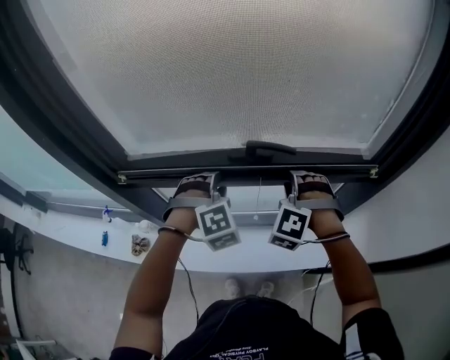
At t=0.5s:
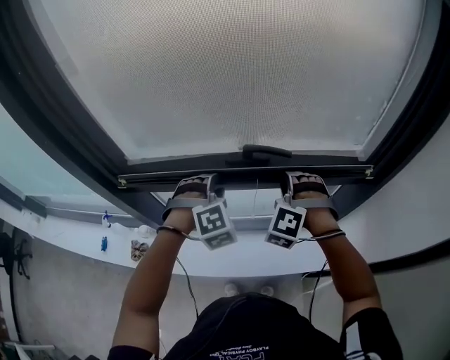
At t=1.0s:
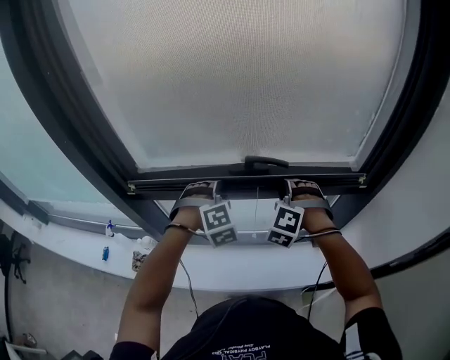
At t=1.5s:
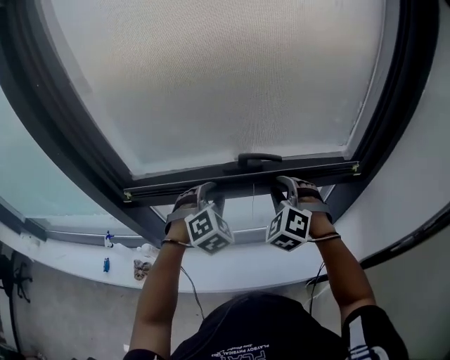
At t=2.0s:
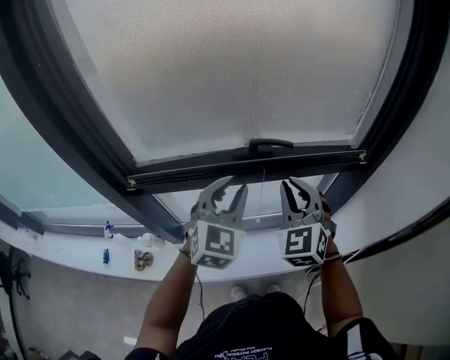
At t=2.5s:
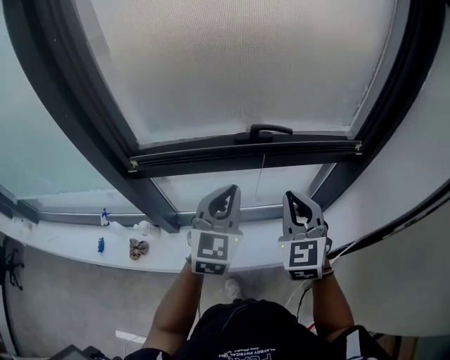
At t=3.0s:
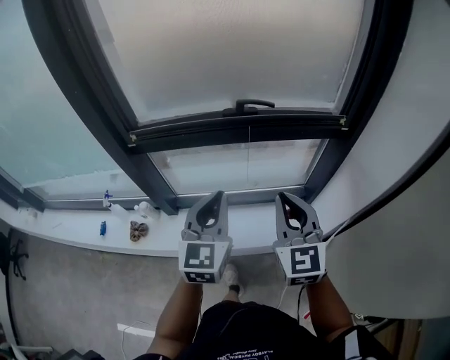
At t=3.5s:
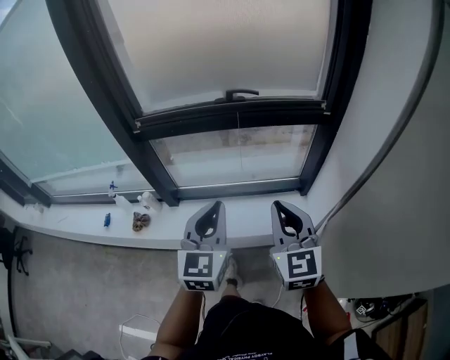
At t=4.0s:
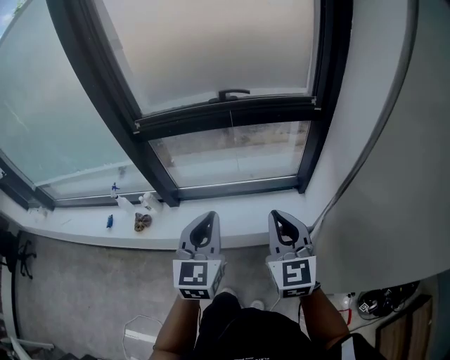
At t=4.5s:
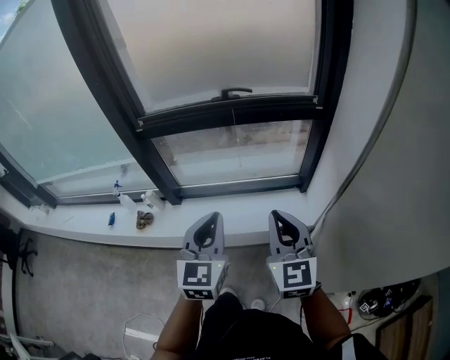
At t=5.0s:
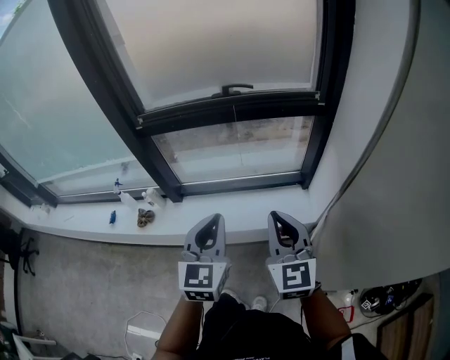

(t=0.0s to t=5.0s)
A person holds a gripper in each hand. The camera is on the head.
t=0.0s - t=2.5s: Both grippers move backward and upward, about 15 cm. The left gripper tilts its fingers approximately 40 degrees upward, and closes, while the right gripper rolls clockwise, seen from behind, by roughly 60 degrees, and closes.
t=2.5s - t=5.0s: Both grippers move backward, approximately 30 cm.

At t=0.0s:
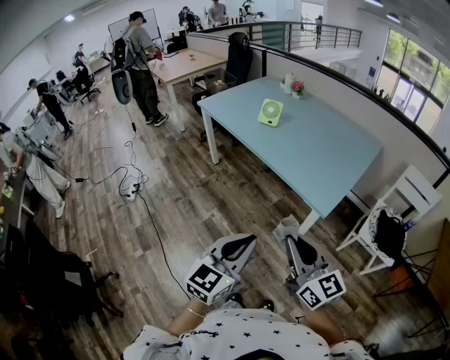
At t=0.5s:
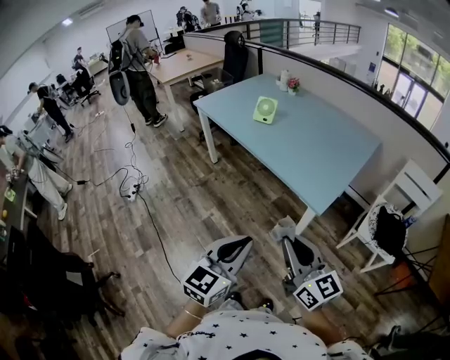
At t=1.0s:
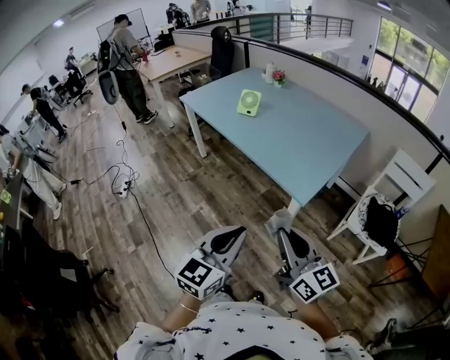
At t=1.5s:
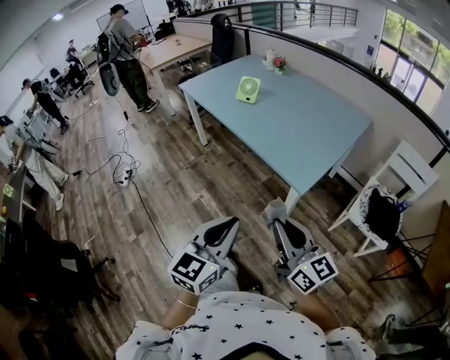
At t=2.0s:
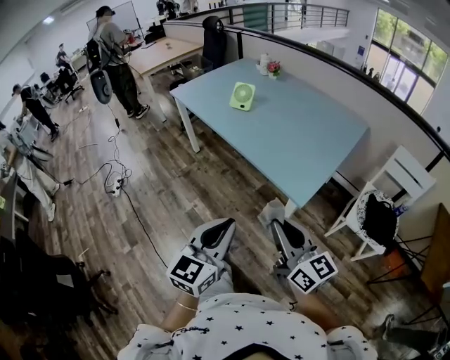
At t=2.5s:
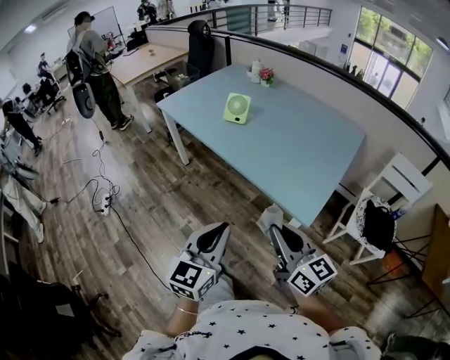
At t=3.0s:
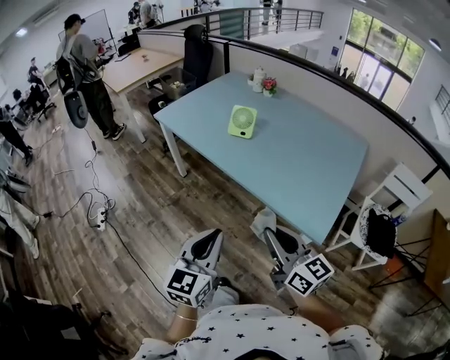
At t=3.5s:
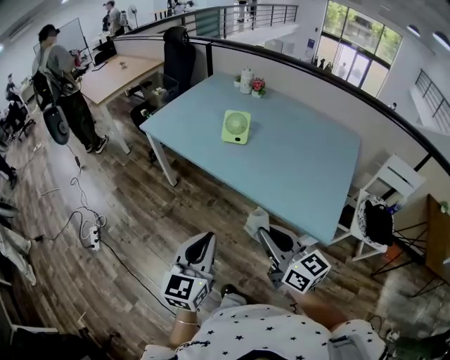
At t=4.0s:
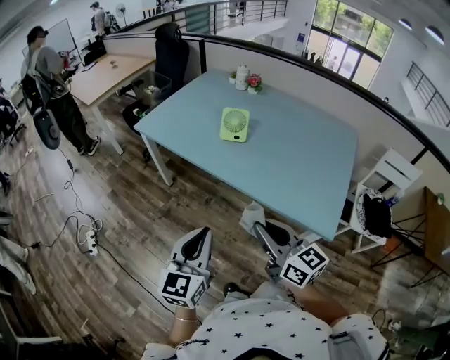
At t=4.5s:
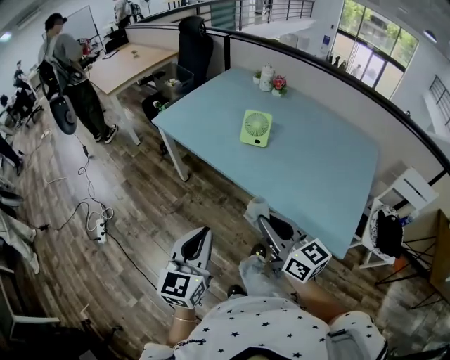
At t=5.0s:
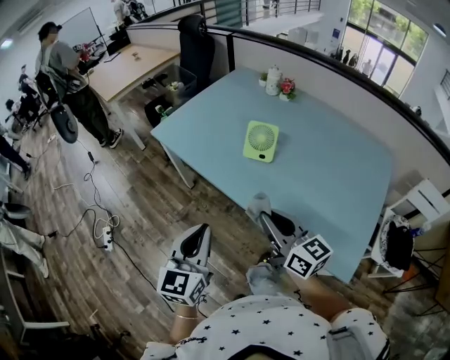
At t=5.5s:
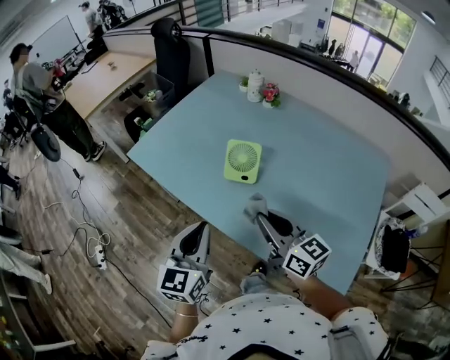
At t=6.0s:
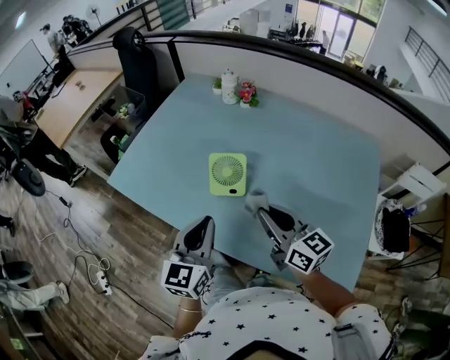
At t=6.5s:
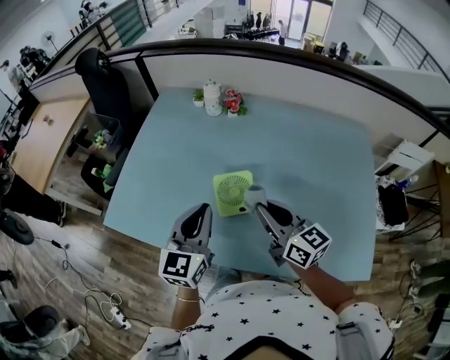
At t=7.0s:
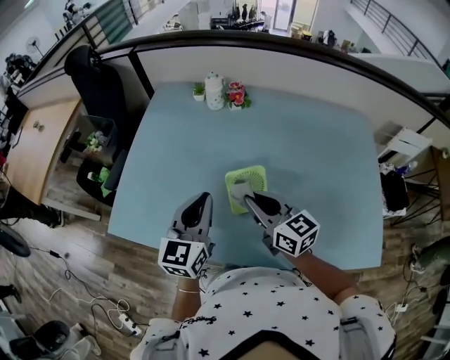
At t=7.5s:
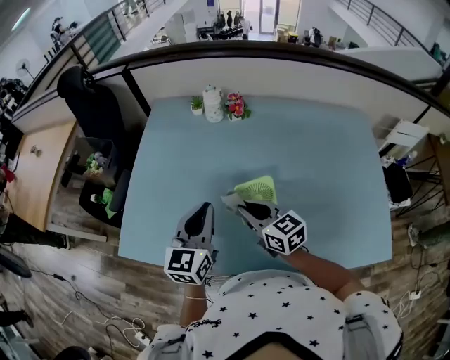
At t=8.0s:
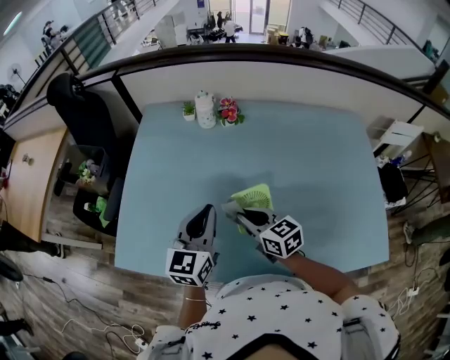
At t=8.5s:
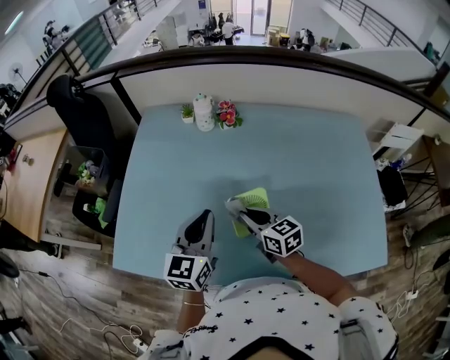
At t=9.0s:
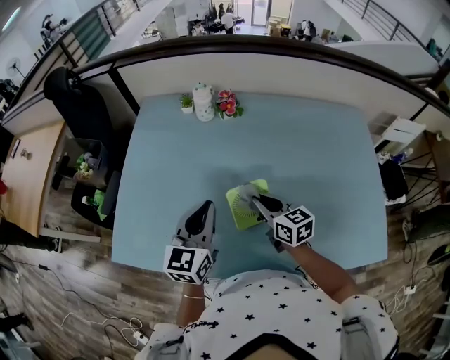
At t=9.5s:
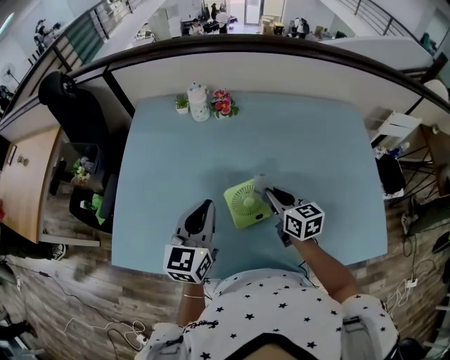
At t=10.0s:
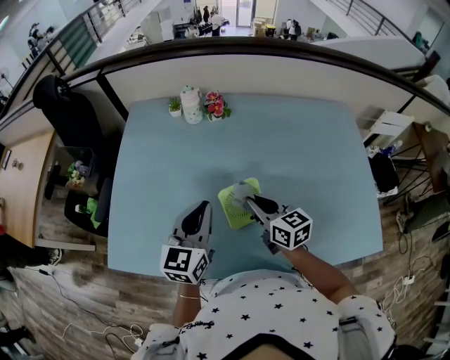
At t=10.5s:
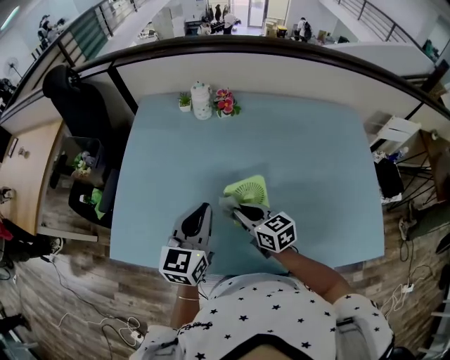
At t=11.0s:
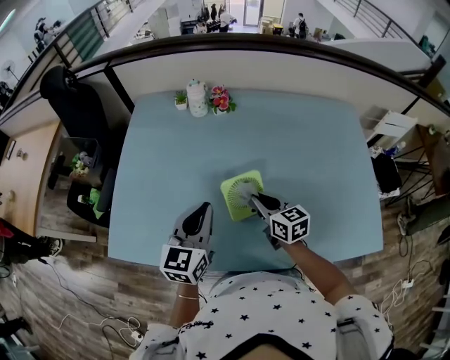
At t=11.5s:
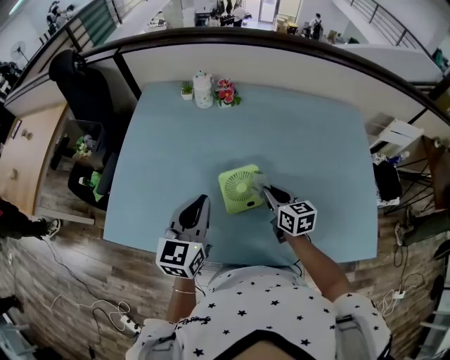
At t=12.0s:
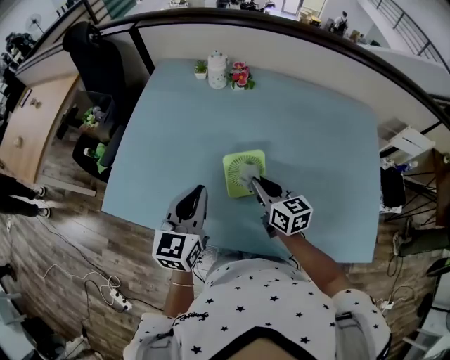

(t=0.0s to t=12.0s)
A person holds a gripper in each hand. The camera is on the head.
t=0.0s - t=2.0s: The left gripper moves forward and to the right, some 10 cm, while the right gripper heads to the right and forward, covering roughly 10 cm.
t=2.0s - t=4.0s: Both grippers travel together forward and to the left, about 35 cm.
t=4.0s - t=6.0s: Both grippers move forward, some 35 cm.
t=6.0s - t=8.0s: The left gripper travels forward and to the left by about 25 cm, and swivels roughly 20 degrees; the right gripper moves forward, to the left and downward, some 25 cm, and turns by approximately 20 degrees.
t=8.0s - t=10.0s: The right gripper shifts approximately 5 cm to the right.
t=10.0s - t=12.0s: The right gripper goes left and right, some 15 cm each way, reversing 2 times. Meanwhile the left gripper moves backward, approximately 5 cm.

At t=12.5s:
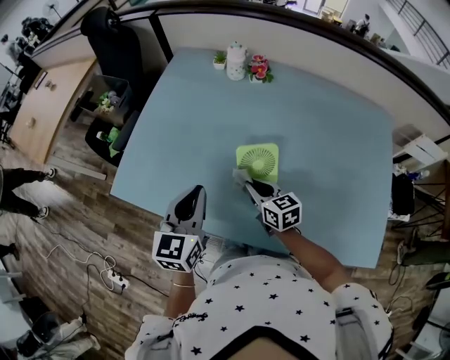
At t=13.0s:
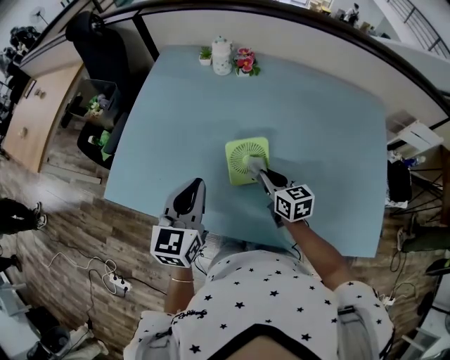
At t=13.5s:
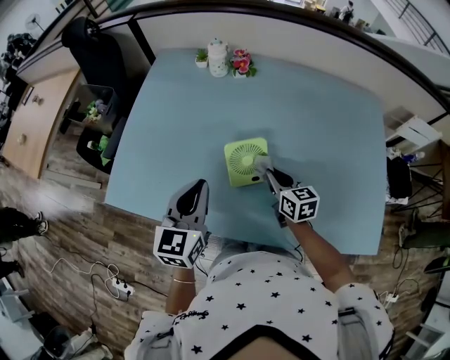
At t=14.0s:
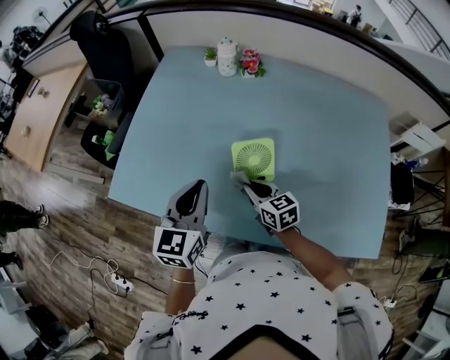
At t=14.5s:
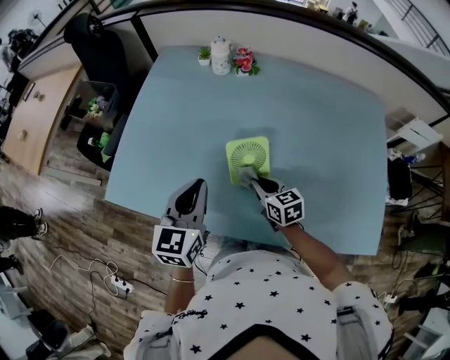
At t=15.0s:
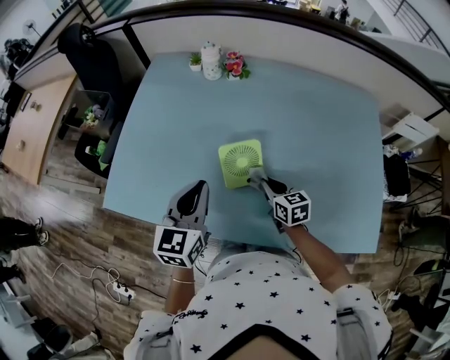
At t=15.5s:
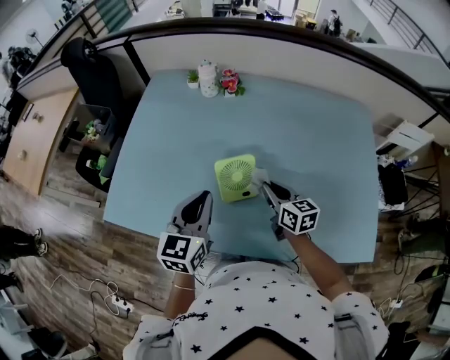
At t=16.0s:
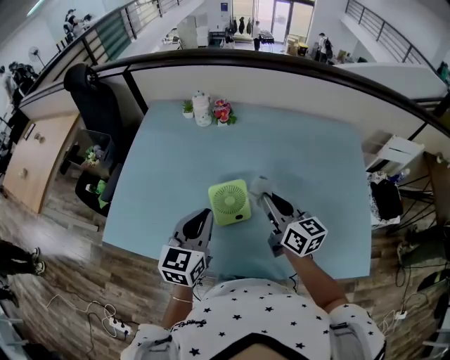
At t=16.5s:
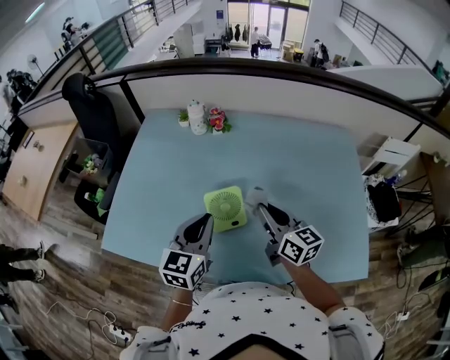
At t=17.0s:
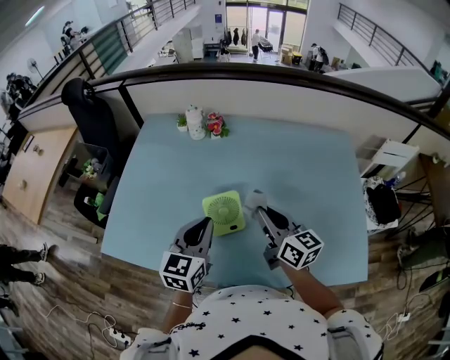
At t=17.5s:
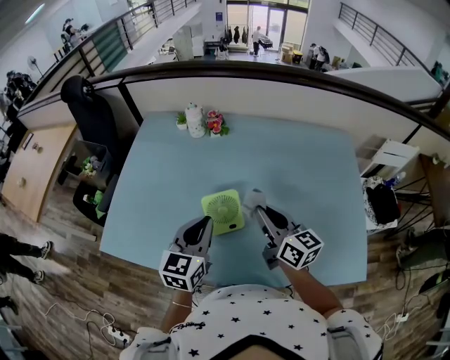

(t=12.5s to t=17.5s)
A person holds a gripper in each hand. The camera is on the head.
t=12.5s - t=15.0s: The right gripper swings left and right, about 10 cm each way, with 2 reversals, while the left gripper changes place by approximately 5 cm.
t=15.0s - t=17.5s: The left gripper goes approximately 5 cm to the right; the right gripper heads upward, covering approximately 20 cm, and tilts its fingers roughly 30 degrees upward.

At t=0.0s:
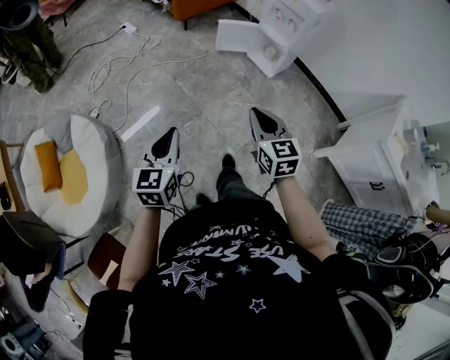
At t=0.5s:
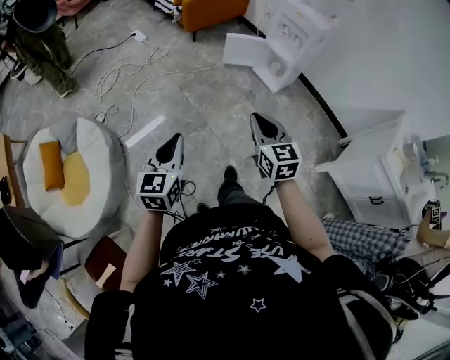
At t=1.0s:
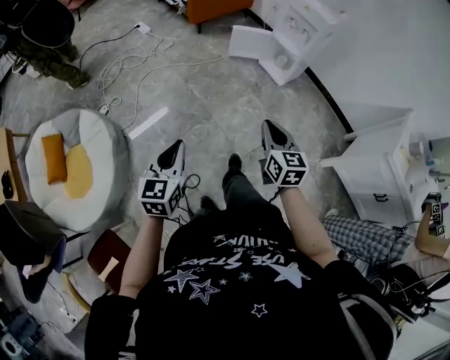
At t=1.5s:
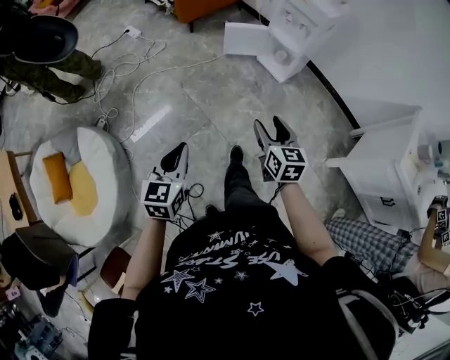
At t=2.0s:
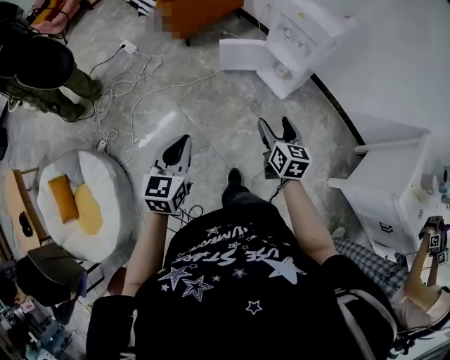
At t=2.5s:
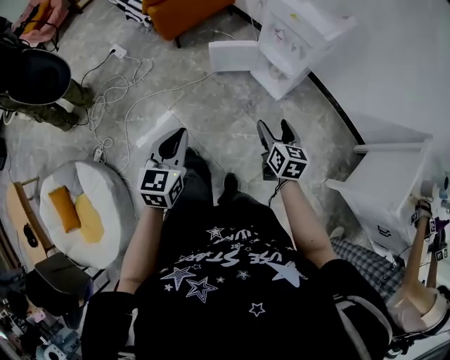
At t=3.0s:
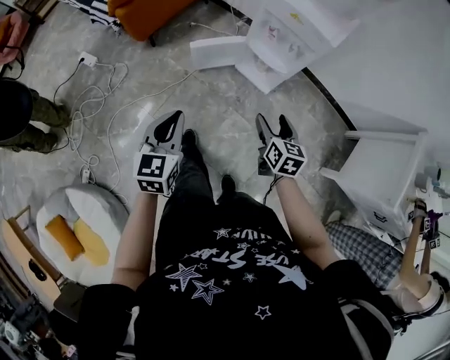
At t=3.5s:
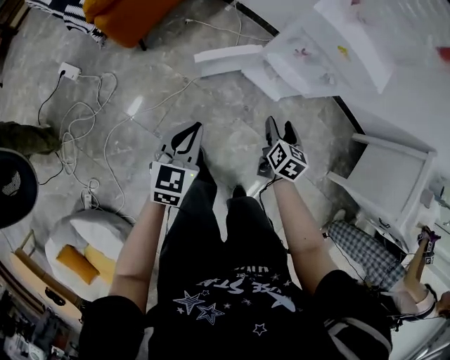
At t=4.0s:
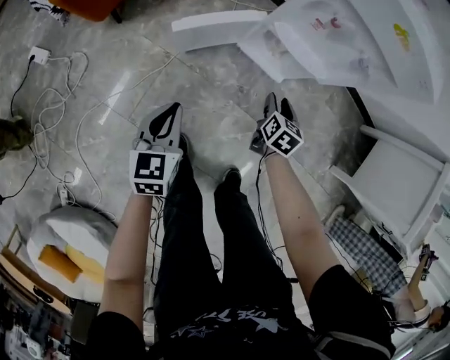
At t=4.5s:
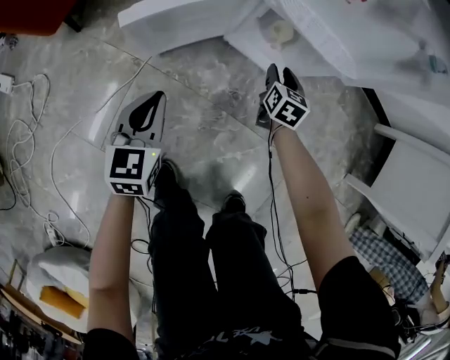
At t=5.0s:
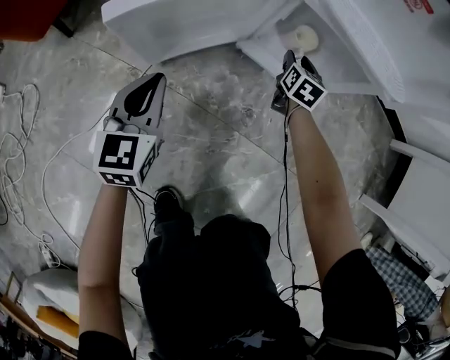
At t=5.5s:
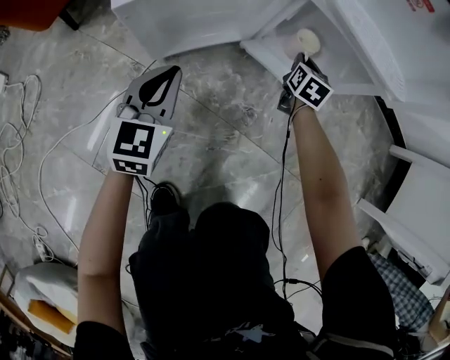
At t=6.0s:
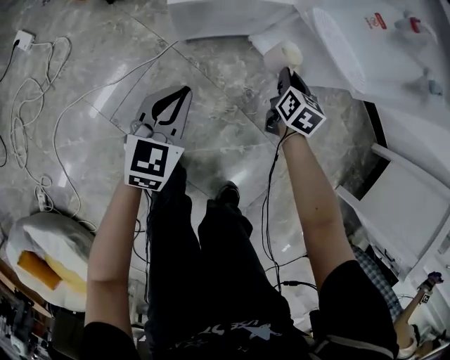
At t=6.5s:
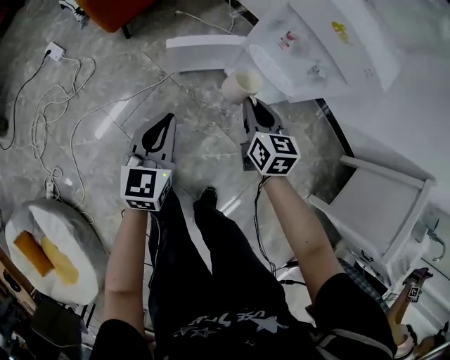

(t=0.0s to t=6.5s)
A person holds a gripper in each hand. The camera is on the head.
t=0.0s - t=2.0s: The left gripper moves forward, some 25 cm. The right gripper heads forward and to the right, covering approximately 30 cm, turns by some 20 degrees, and opens up.
t=2.0s - t=4.5s: The two grippers travel together, about 50 cm. Both grippers travel together downward, about 50 cm. The right gripper turns by some 40 degrees, and closes up; the left gripper changes its angle by some 20 degrees.
t=4.5s - t=6.5s: Both grippers travel together upward, some 30 cm. The right gripper changes its angle by approximately 30 degrees, and closes.
